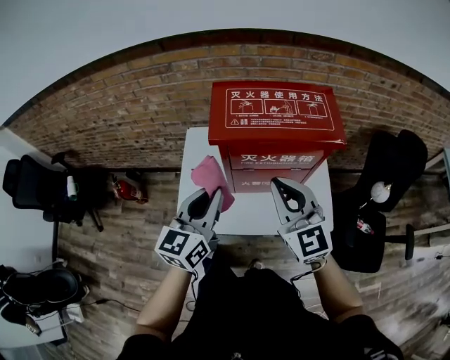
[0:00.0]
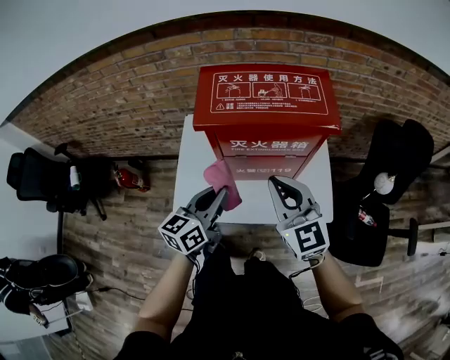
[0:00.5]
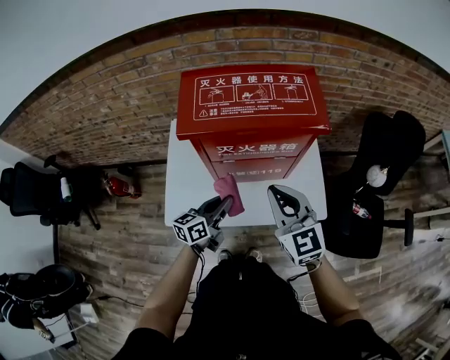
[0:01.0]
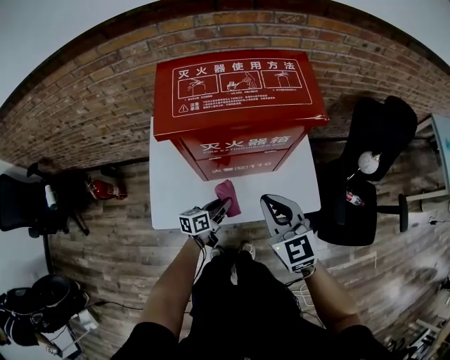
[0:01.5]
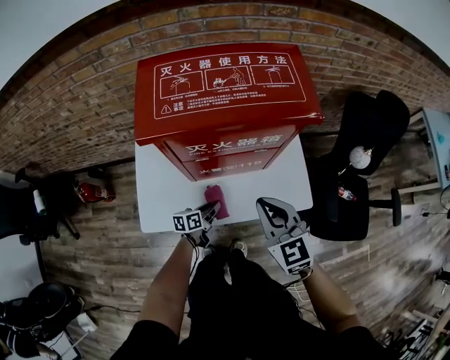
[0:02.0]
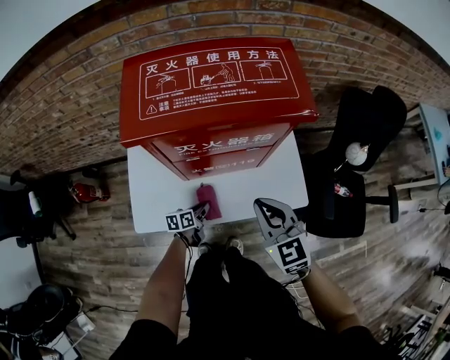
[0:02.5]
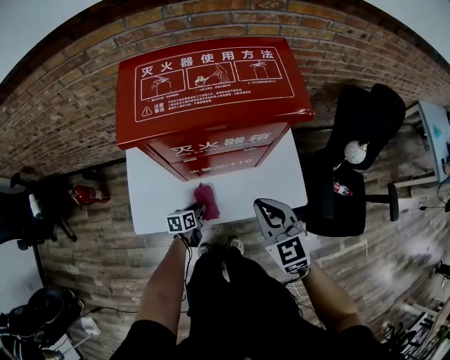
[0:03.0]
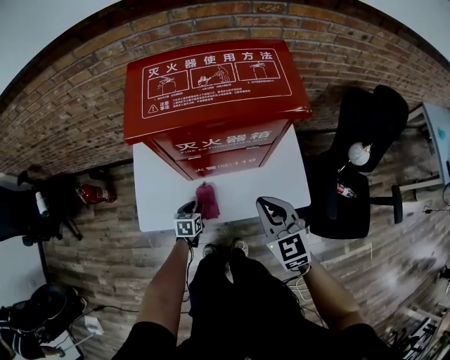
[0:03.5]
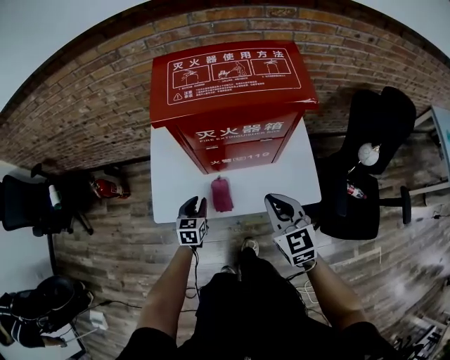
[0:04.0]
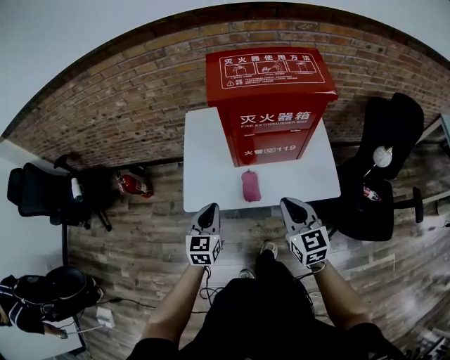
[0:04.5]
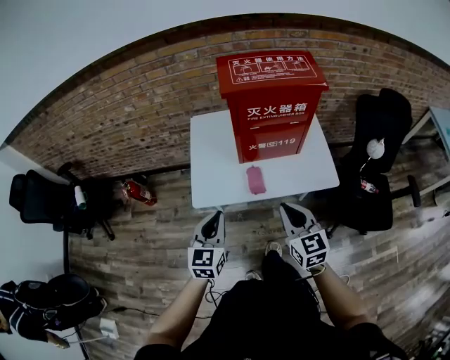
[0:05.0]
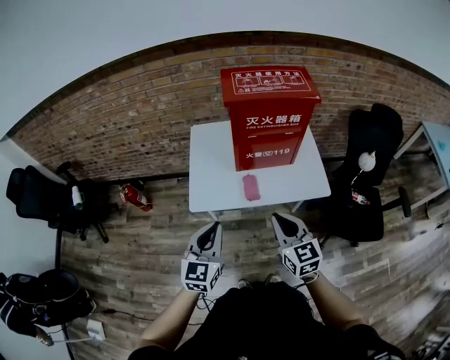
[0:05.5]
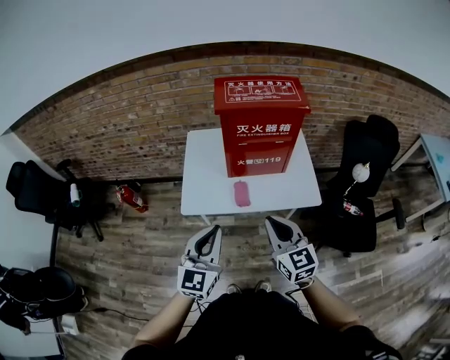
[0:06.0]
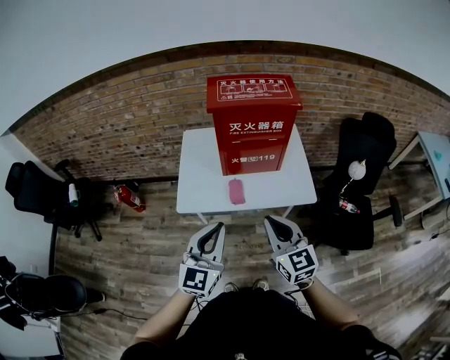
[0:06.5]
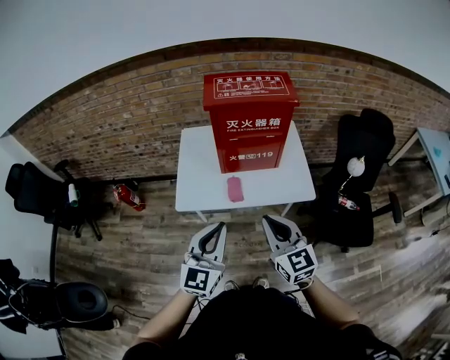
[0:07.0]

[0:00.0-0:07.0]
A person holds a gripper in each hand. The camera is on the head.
0:00.0 to 0:02.0: The left gripper is displaced downward by roughly 40 cm, and swivels approximately 50 degrees. Meanwhile the right gripper is displaced downward and to the right by roughly 20 cm, and changes its angle by some 20 degrees.
0:02.0 to 0:03.5: The left gripper shifts about 5 cm to the left, and rotates some 40 degrees.
0:03.5 to 0:05.0: The left gripper is displaced upward and backward by about 40 cm, tips its fingers upward by roughly 30 degrees, and closes its fingers. Meanwhile the right gripper heads backward and to the left, covering some 25 cm.
0:05.0 to 0:07.0: The left gripper shifts roughly 20 cm upward, to the right and backward; the right gripper is displaced upward and backward by roughly 10 cm.

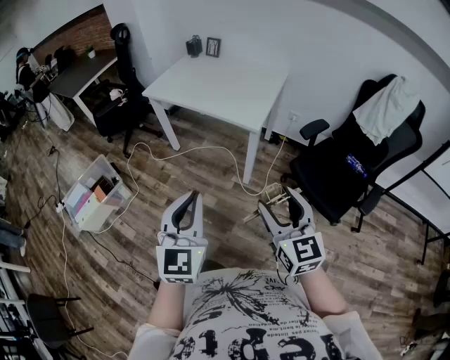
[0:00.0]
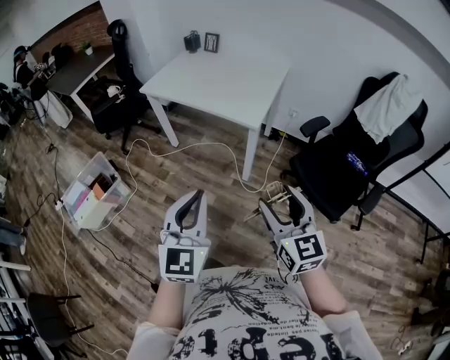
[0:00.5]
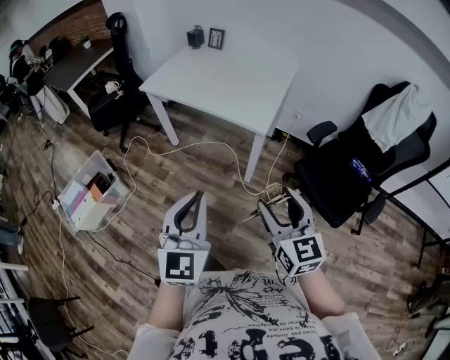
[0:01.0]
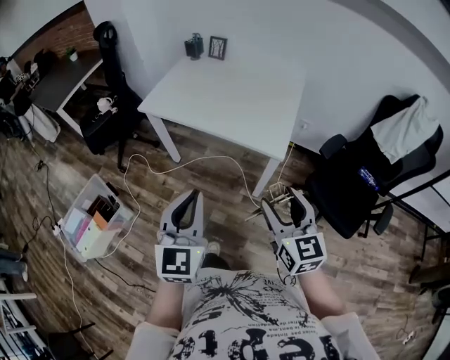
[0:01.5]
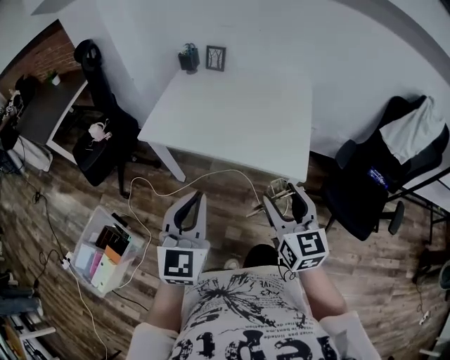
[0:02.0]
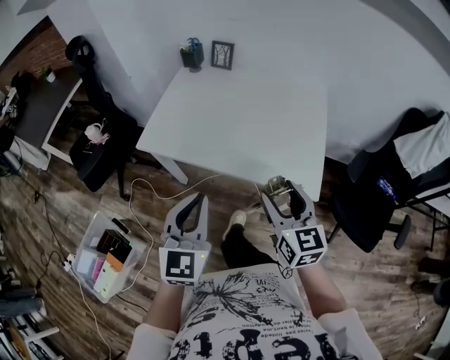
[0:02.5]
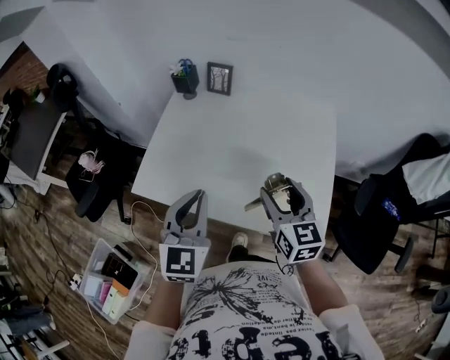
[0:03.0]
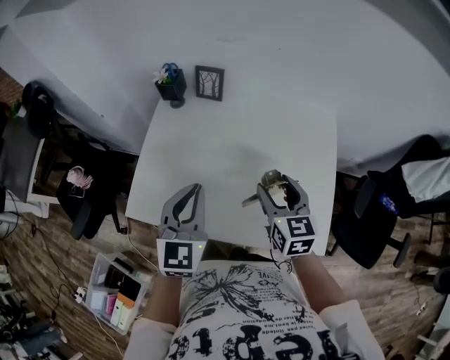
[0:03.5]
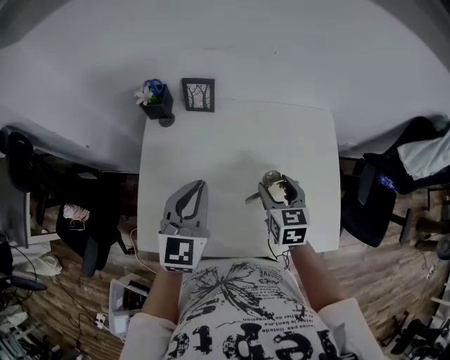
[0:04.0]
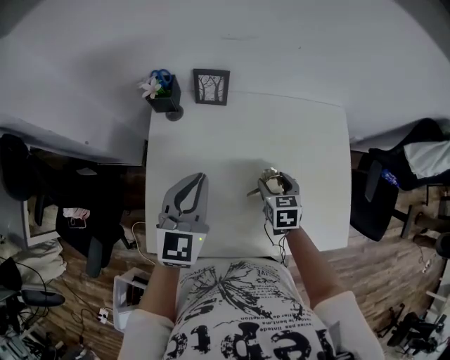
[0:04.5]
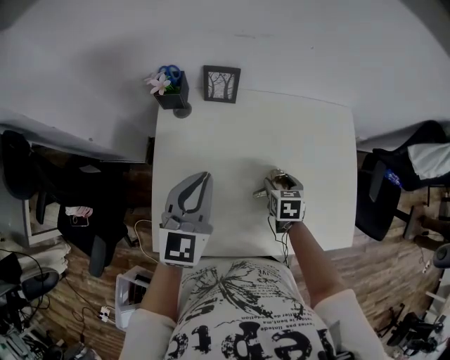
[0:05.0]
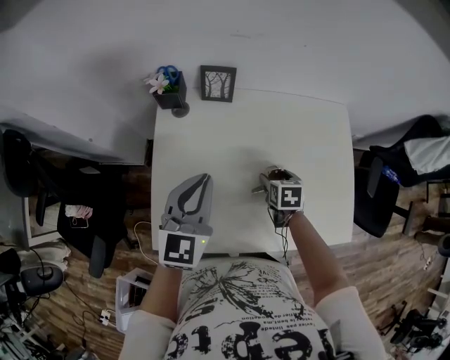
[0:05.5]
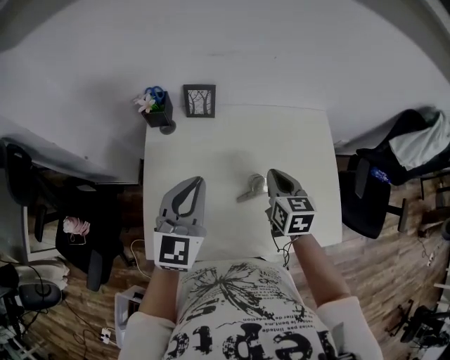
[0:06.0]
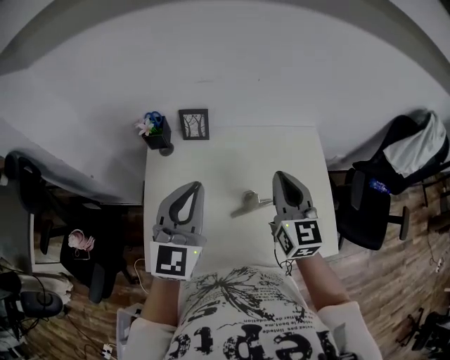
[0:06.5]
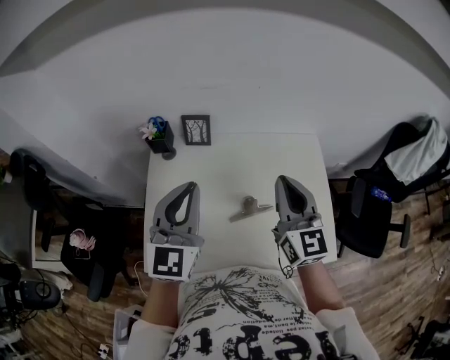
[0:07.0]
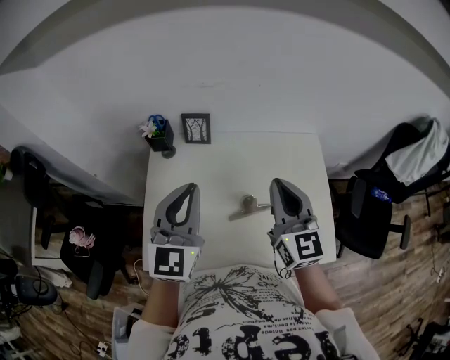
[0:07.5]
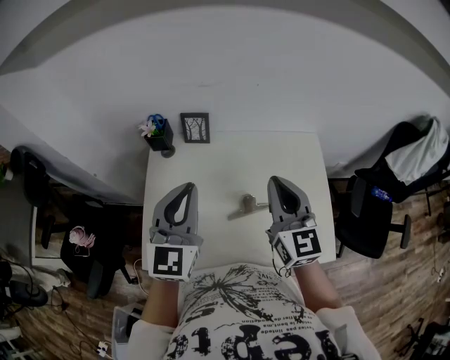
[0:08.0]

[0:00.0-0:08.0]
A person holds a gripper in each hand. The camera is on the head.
0:00.0 to 0:02.0: Both grippers are carried forward and to the left, approximately 40 cm.
0:02.0 to 0:04.0: The two grippers travel together, forward, roughly 50 cm. The right gripper turns by approximately 30 degrees.
0:04.0 to 0:06.0: The right gripper reaches approximately 15 cm downward, then returns, and closes.
0:06.0 to 0:08.0: The left gripper travels upward by some 10 cm. Meanwhile the right gripper is displaced upward by some 15 cm, and angles its fingers upward, by roughly 30 degrees.

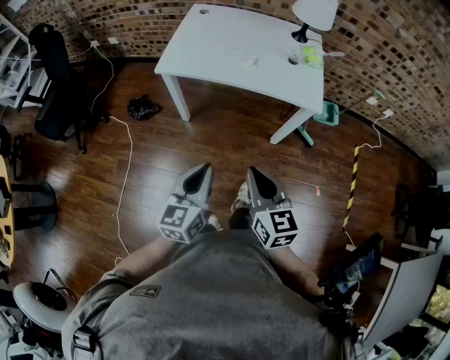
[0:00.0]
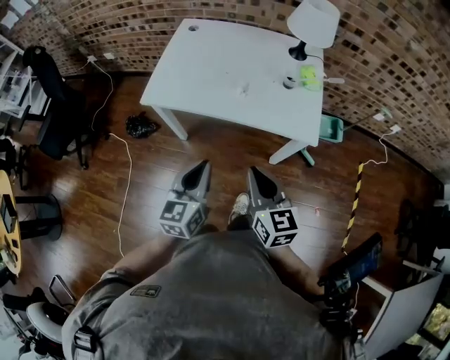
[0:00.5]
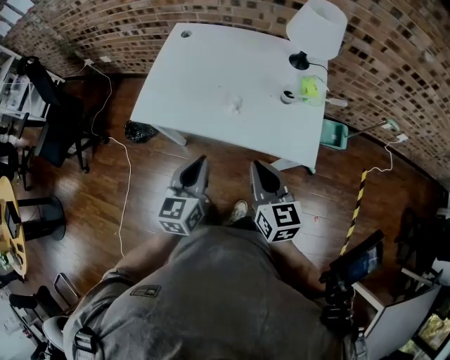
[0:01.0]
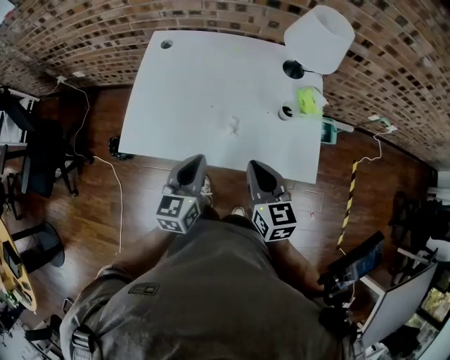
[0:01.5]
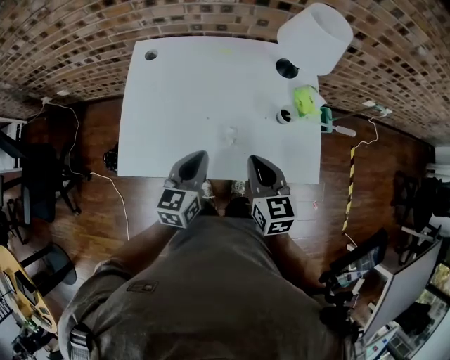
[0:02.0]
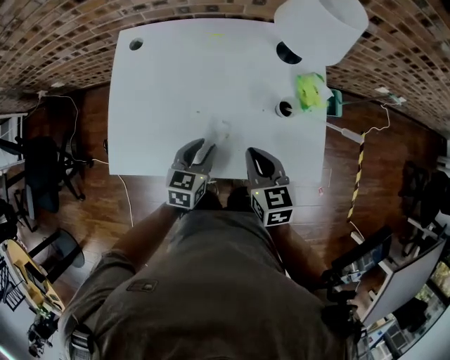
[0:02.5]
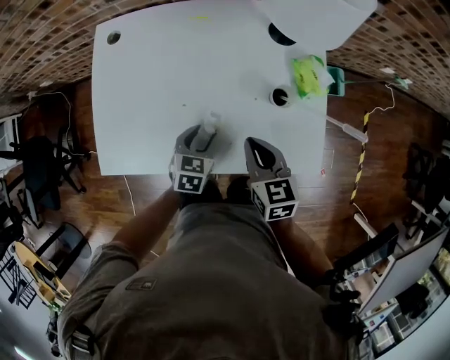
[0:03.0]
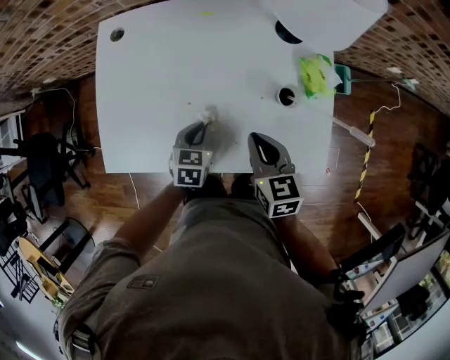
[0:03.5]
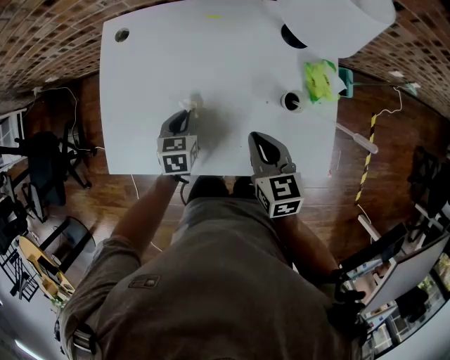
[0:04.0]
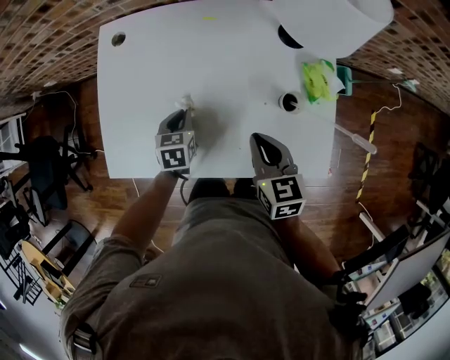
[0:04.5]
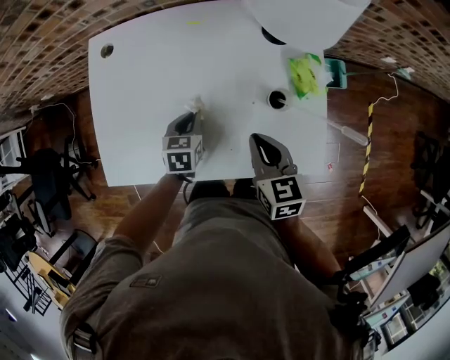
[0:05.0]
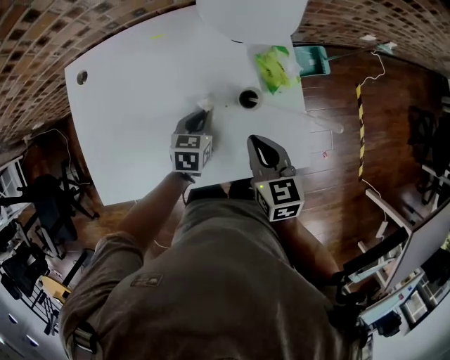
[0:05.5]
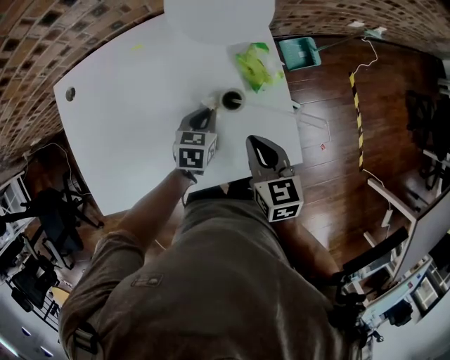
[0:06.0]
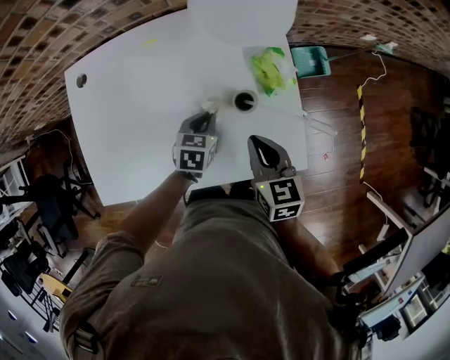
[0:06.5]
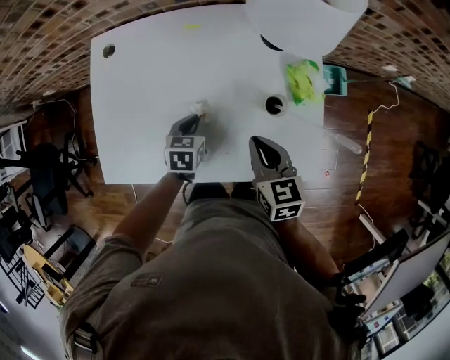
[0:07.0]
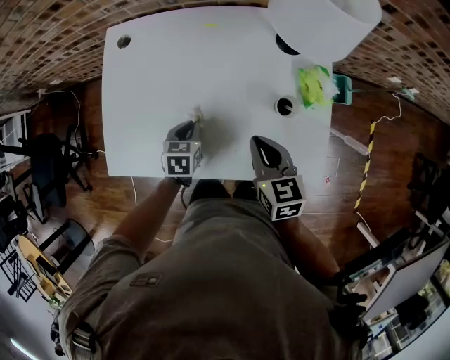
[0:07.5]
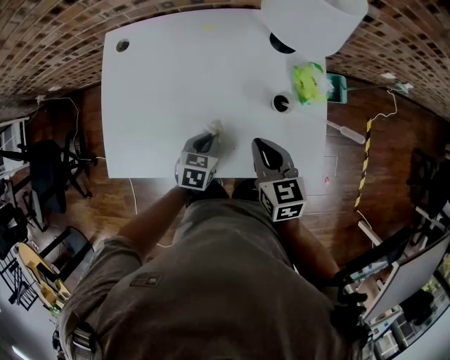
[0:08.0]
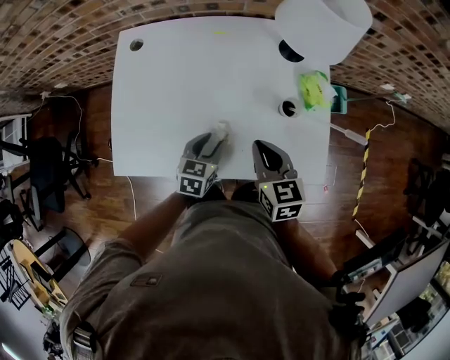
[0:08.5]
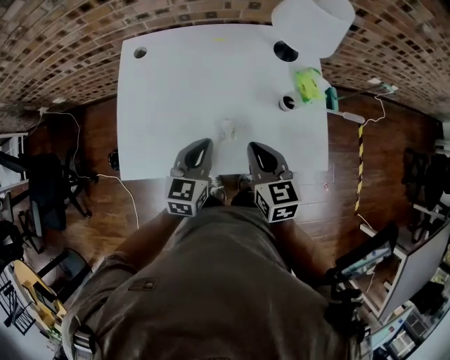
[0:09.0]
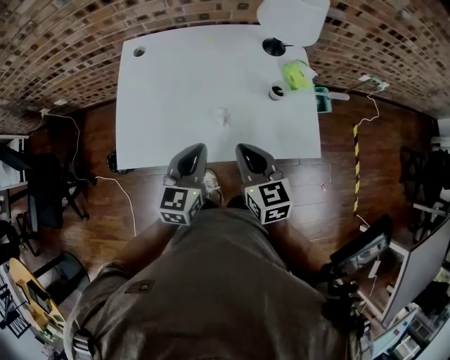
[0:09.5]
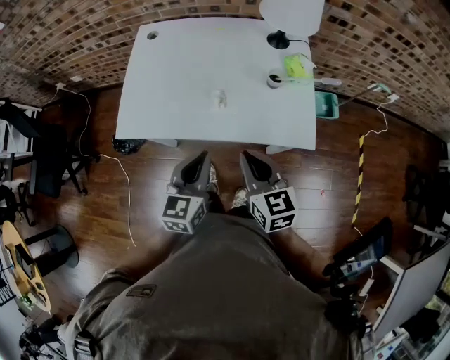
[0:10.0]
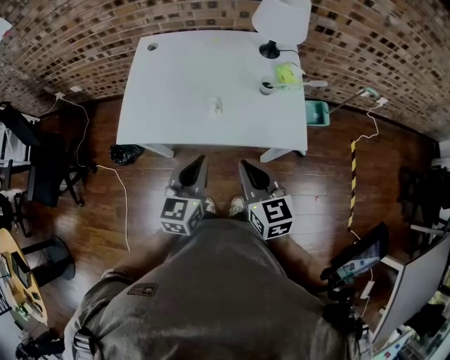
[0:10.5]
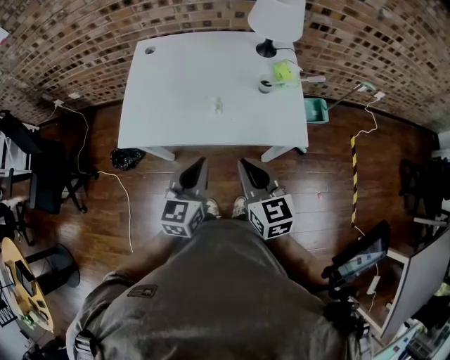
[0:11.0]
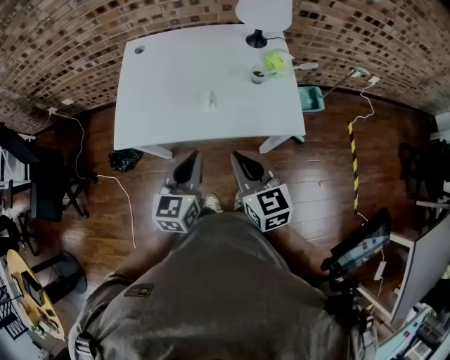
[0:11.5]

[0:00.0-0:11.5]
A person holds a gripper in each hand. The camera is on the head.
0:00.0 to 0:02.0: The pair of grippers is taken forward, approximately 50 cm.
0:02.0 to 0:04.0: The right gripper goes some 10 cm downward and forward. The left gripper shifts approximately 20 cm downward and forward, changes its angle by about 30 degrees, and opens and closes again.
0:04.0 to 0:06.0: The left gripper changes place by some 25 cm, and rotates about 30 degrees, while the right gripper shifts by roughly 15 cm.
0:06.0 to 0:07.5: The right gripper travels to the left by roughly 10 cm, while the left gripper travels to the left by approximately 20 cm, and turns by some 20 degrees.
0:07.5 to 0:09.5: The left gripper moves upward and backward, some 25 cm, tilts its fingers approximately 40 degrees upward, and opens and closes again. The right gripper is displaced backward, to the left and upward by some 15 cm.
0:09.5 to 0:11.5: The grippers both shift backward by roughly 15 cm.
